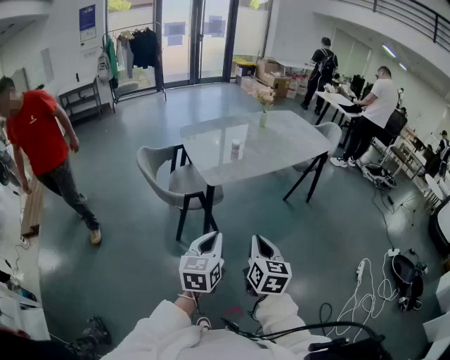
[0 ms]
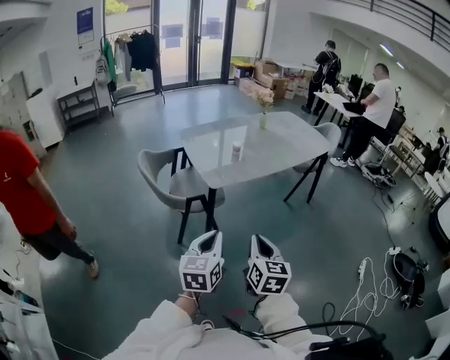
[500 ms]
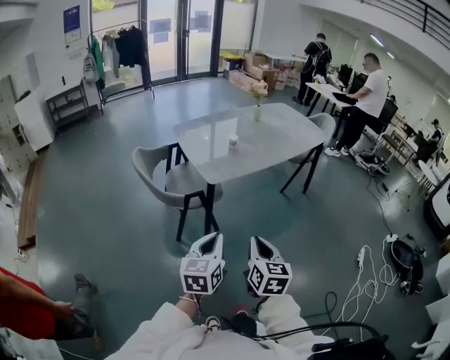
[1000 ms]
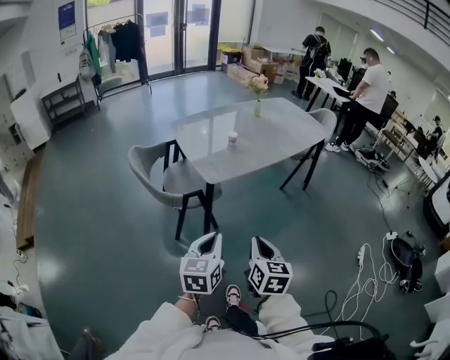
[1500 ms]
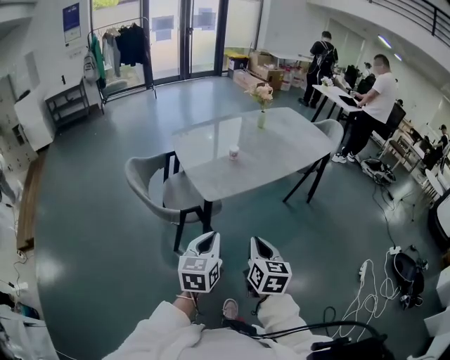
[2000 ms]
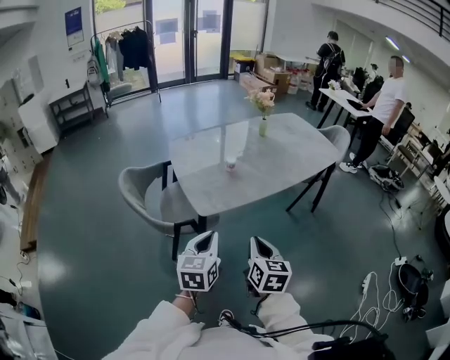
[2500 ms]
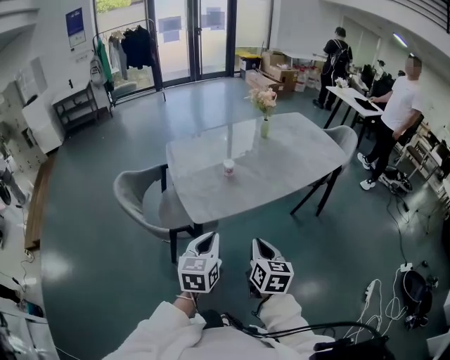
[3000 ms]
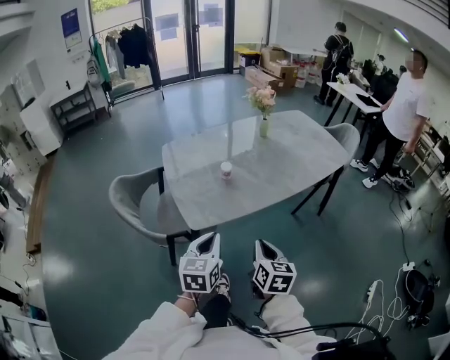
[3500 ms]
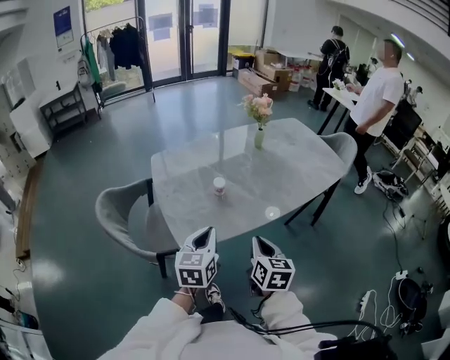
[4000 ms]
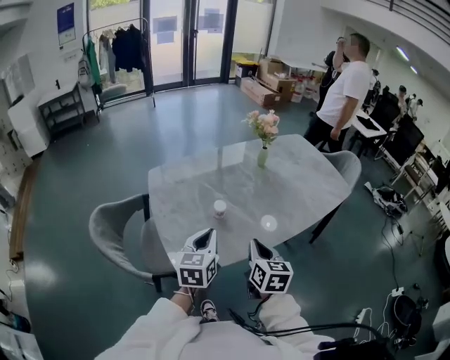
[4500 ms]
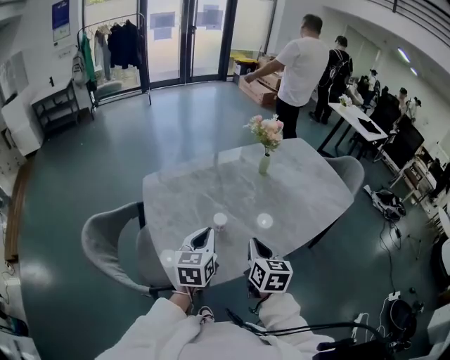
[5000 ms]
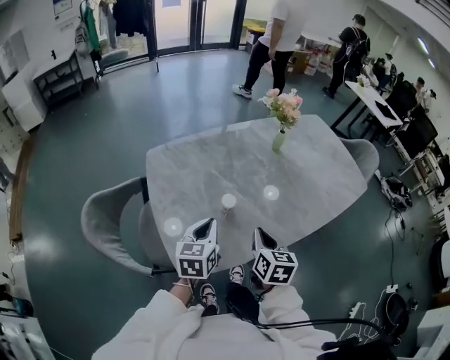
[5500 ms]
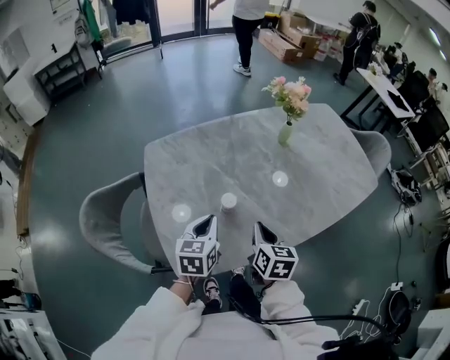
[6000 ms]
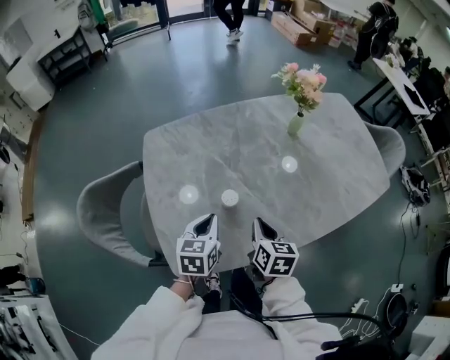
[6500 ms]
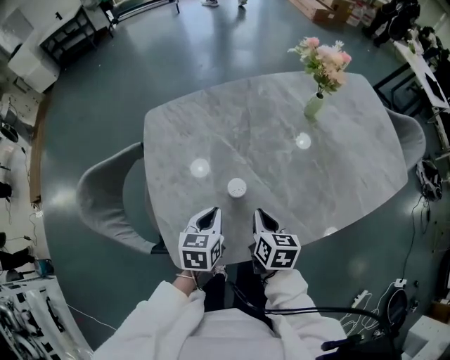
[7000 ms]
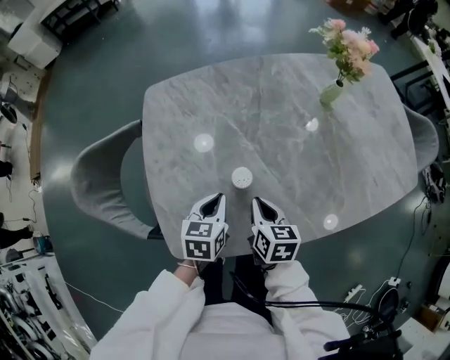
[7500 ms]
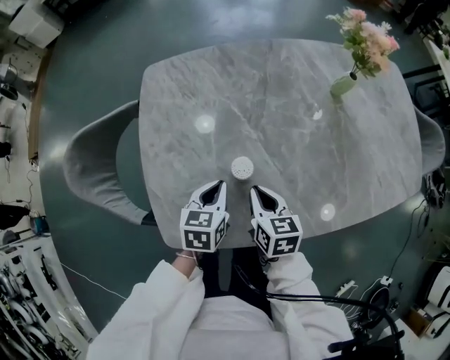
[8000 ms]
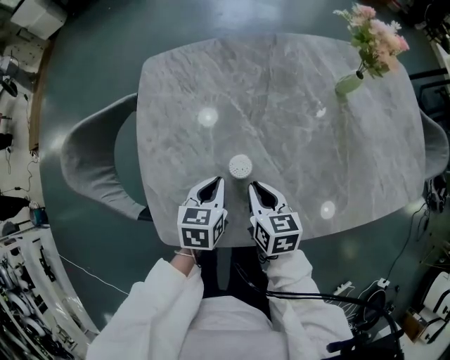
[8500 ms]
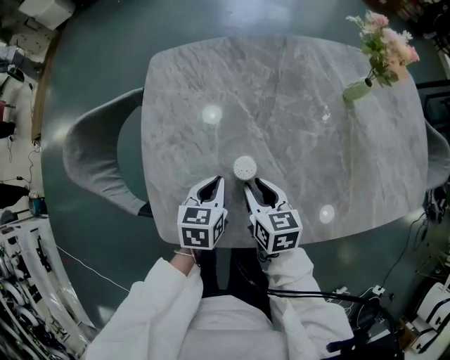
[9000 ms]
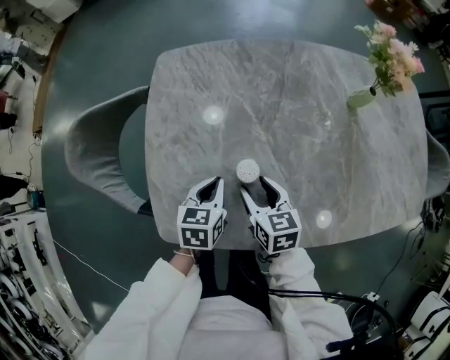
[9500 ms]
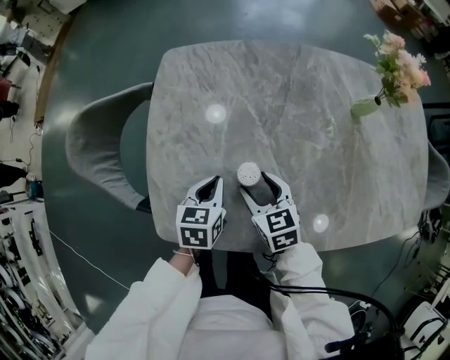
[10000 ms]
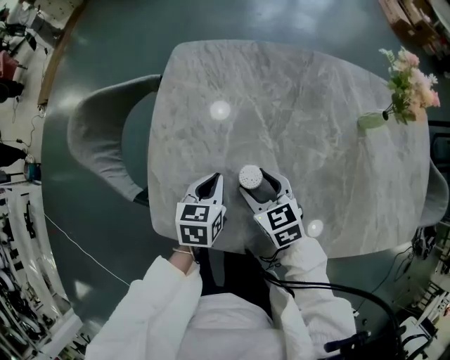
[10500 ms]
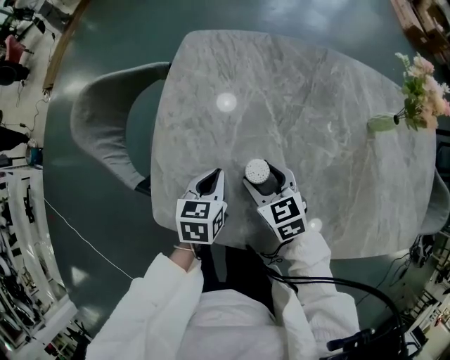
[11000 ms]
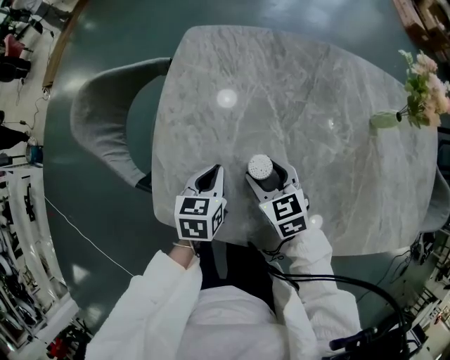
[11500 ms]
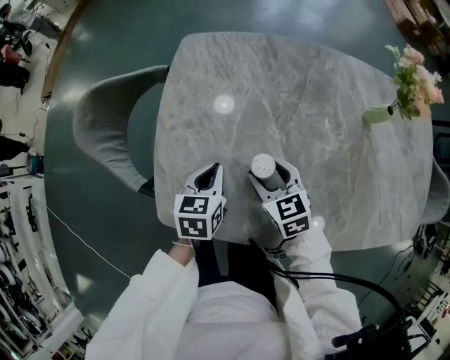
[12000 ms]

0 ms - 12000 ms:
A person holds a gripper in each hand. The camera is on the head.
0 ms - 2000 ms: The two grippers go approximately 10 cm forward.
2000 ms - 4000 ms: Both grippers move forward, roughly 30 cm.
4000 ms - 6000 ms: Both grippers move forward, about 20 cm.
6000 ms - 8000 ms: The right gripper travels downward and forward by roughly 10 cm, and rotates some 30 degrees, while the left gripper travels downward by some 10 cm.
8000 ms - 10000 ms: The right gripper swivels roughly 30 degrees, and opens up.
10000 ms - 12000 ms: The grippers stay close to where they were, moving slightly.

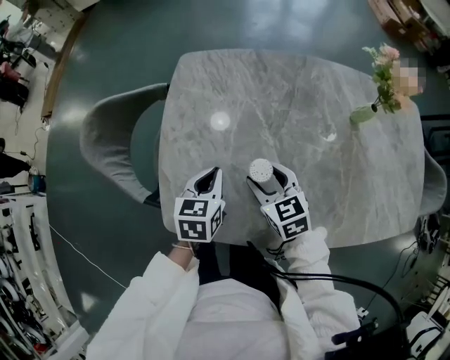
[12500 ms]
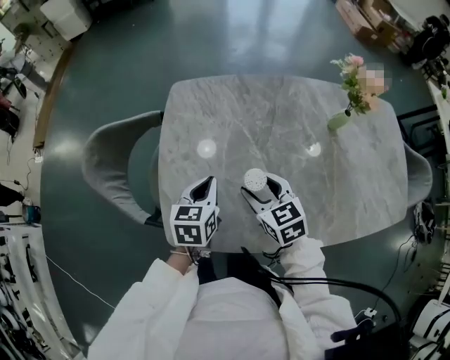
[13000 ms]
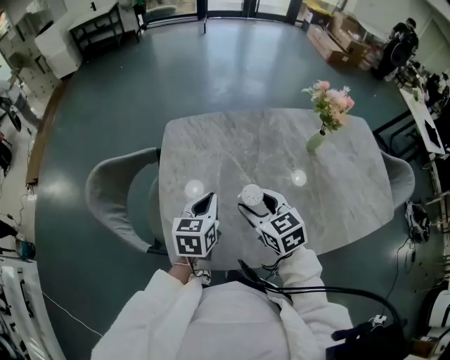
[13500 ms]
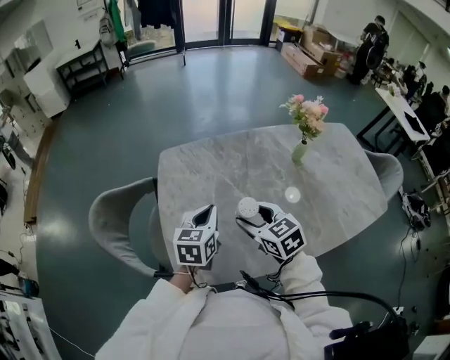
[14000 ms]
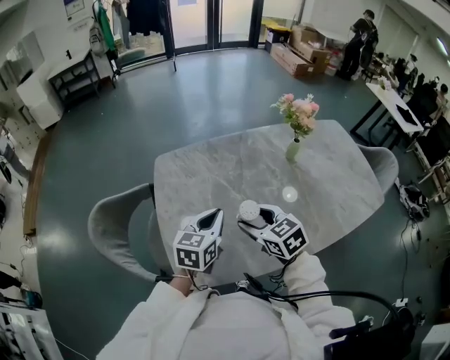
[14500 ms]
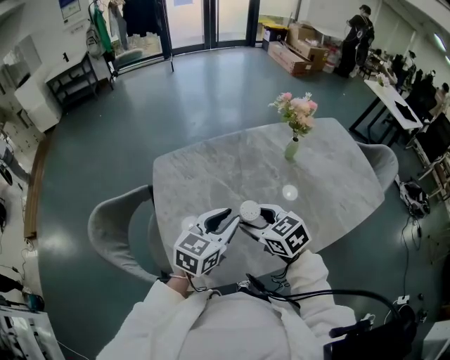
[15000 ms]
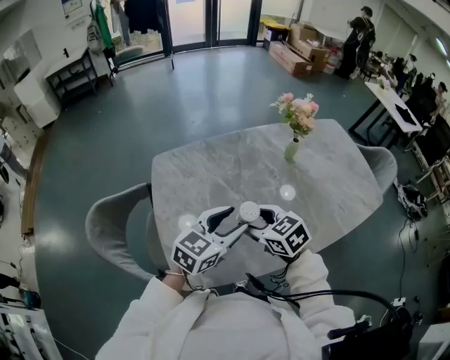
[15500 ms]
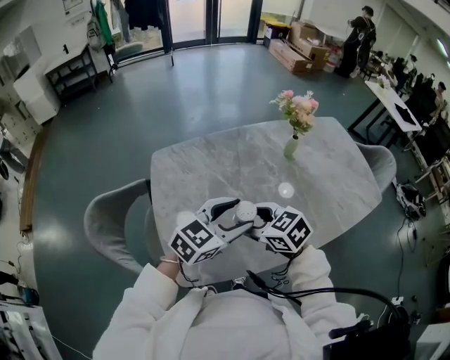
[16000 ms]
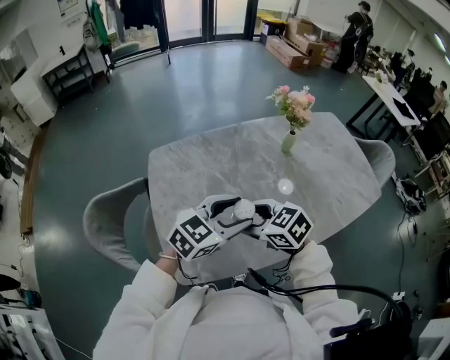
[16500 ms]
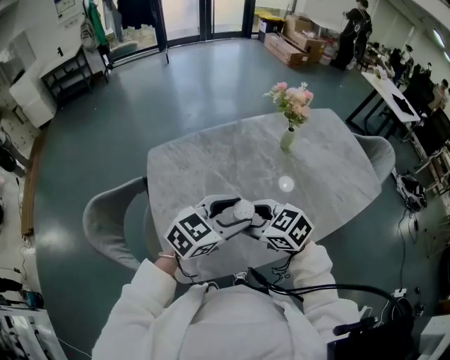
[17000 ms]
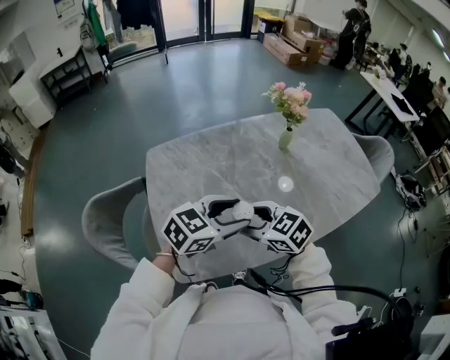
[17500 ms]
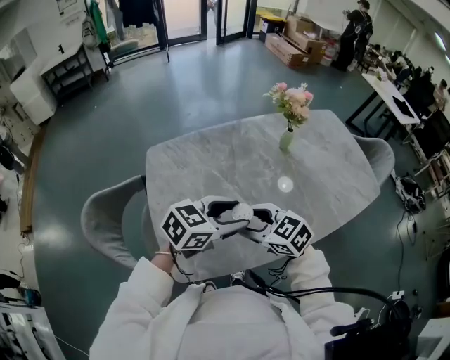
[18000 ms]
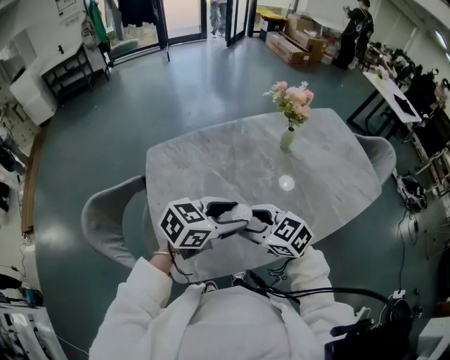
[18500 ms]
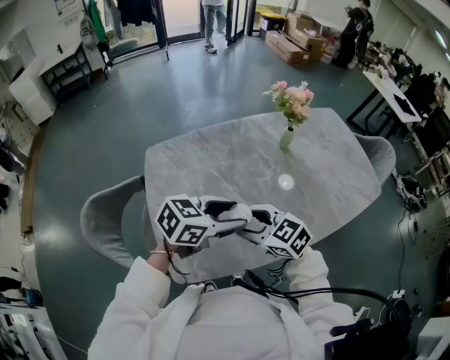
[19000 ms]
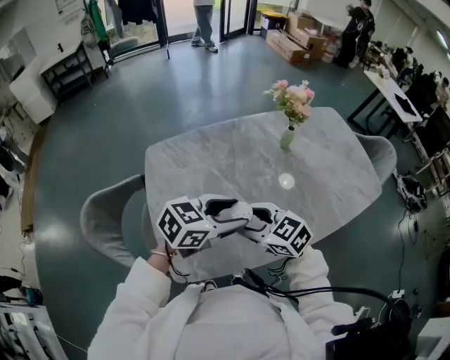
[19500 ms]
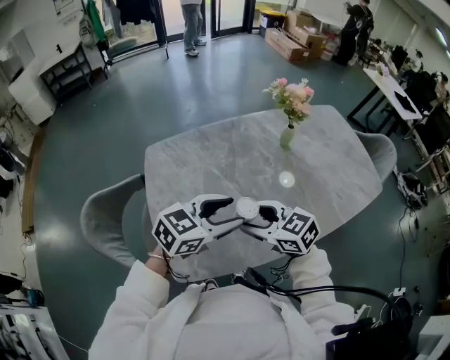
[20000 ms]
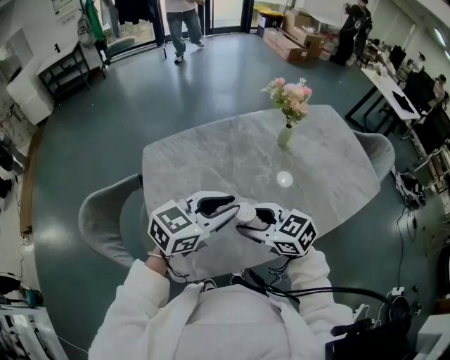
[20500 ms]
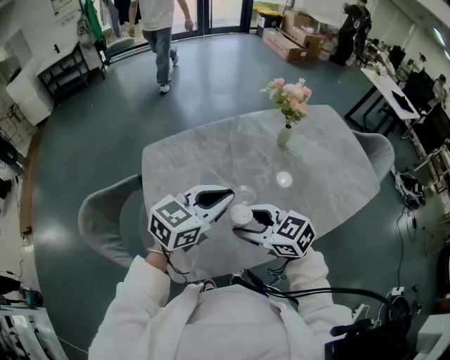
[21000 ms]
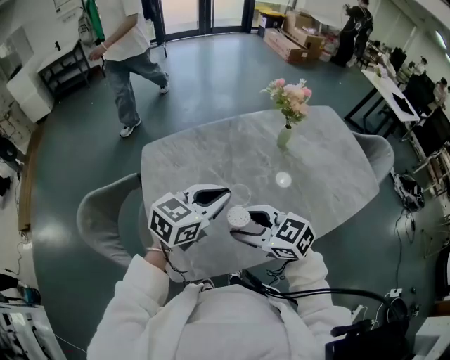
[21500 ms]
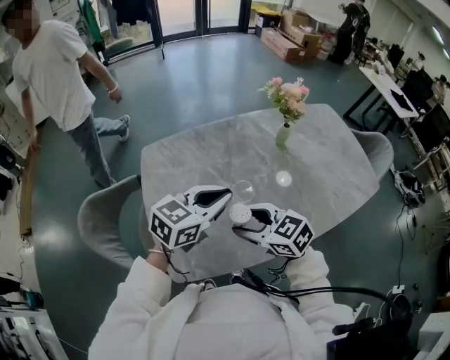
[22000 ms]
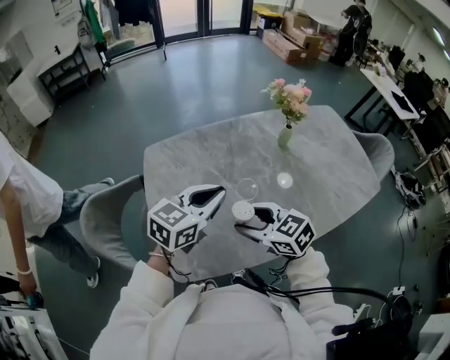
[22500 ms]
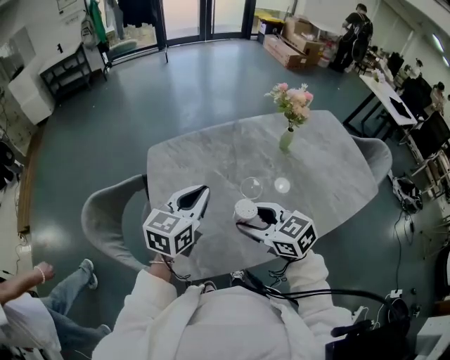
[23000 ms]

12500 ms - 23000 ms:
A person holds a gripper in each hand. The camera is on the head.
12500 ms - 14500 ms: The grippers both shift upward by about 15 cm. The left gripper rotates some 30 degrees.
14500 ms - 16500 ms: The left gripper travels to the right and upward by some 10 cm, swivels approximately 40 degrees, and opens up.
16500 ms - 19000 ms: The left gripper swivels some 20 degrees.
19000 ms - 21000 ms: The left gripper shifts by some 5 cm, rotates some 20 degrees, and closes up.
21000 ms - 23000 ms: The left gripper heads to the left, covering some 5 cm, and rotates roughly 20 degrees.

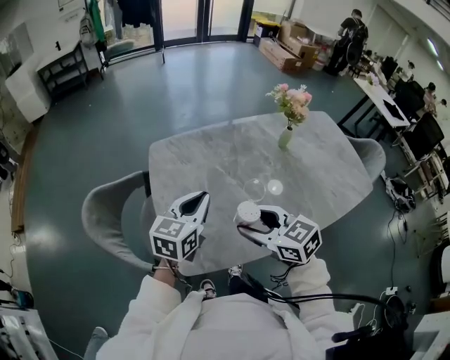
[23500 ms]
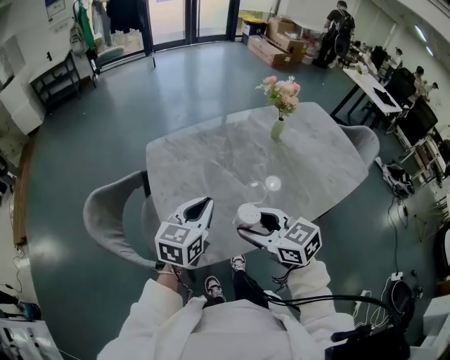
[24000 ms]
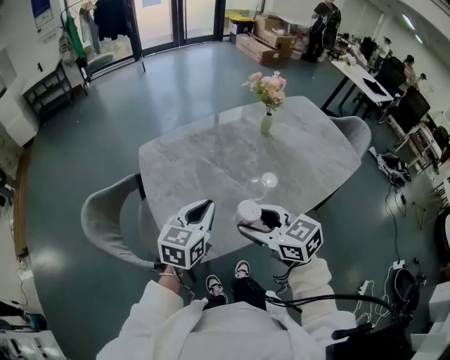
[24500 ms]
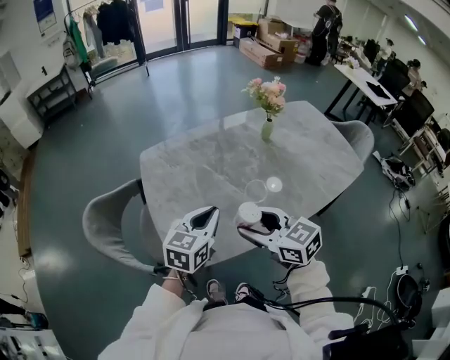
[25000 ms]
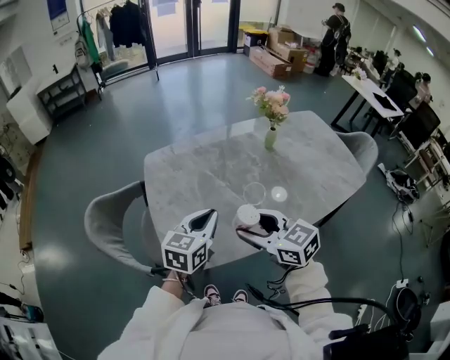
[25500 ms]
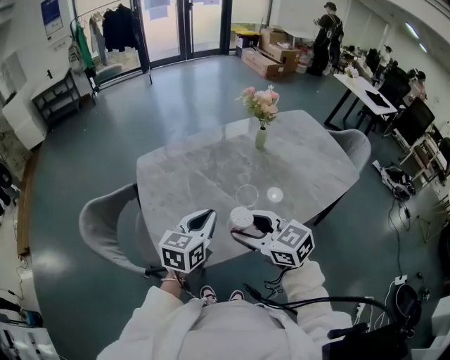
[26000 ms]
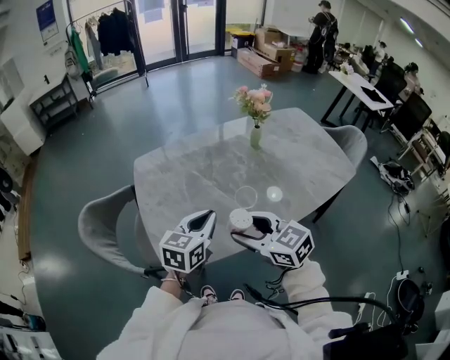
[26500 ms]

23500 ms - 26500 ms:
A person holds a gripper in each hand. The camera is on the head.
23500 ms - 25000 ms: The right gripper moves backward, about 5 cm. Meanwhile the left gripper heads backward and to the right, covering some 10 cm.
25000 ms - 26500 ms: The grippers stay close to where they were, moving slightly.

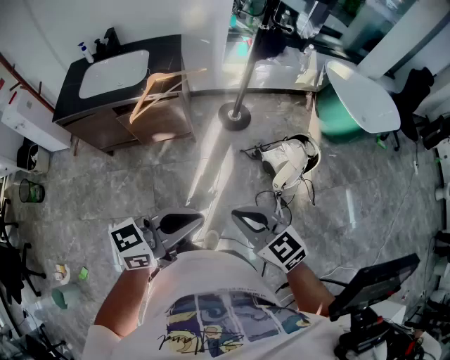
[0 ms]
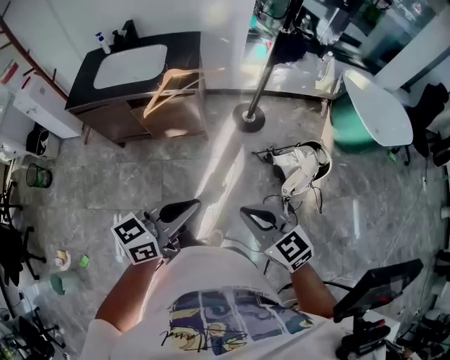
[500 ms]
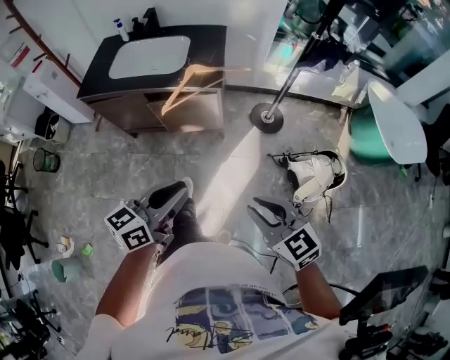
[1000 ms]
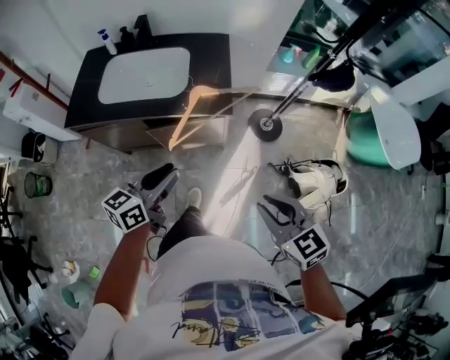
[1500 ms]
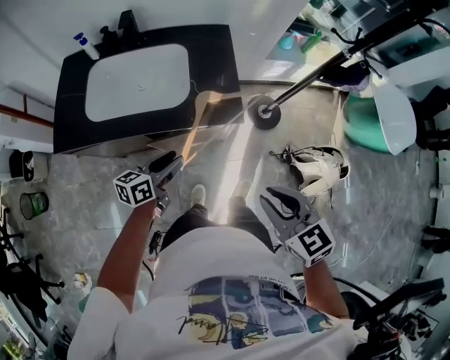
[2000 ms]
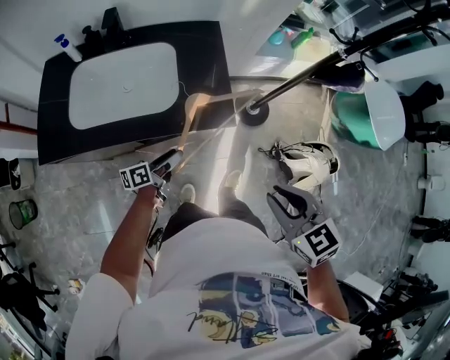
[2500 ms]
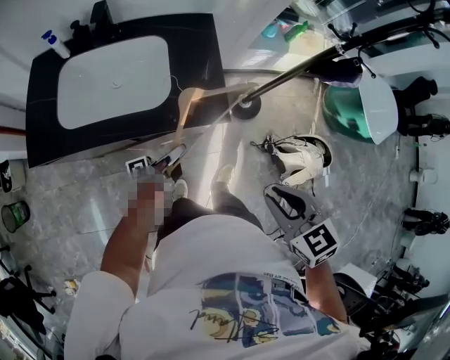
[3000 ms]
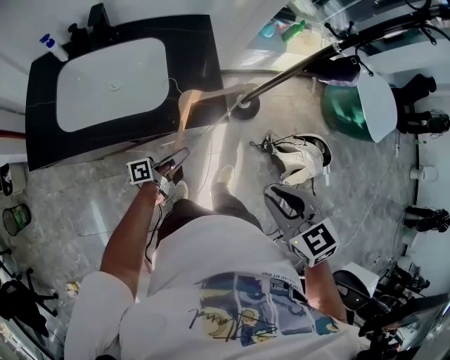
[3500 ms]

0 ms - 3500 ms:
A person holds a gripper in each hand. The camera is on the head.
0 ms - 2000 ms: The left gripper travels forward, to the left and downward by about 60 cm, turns by approximately 30 degrees, and opens. Meanwhile the right gripper travels forward and to the left by roughly 35 cm.
2000 ms - 3500 ms: The left gripper goes roughly 10 cm to the right and downward, twists some 40 degrees counterclockwise, seen from behind, and closes up.
